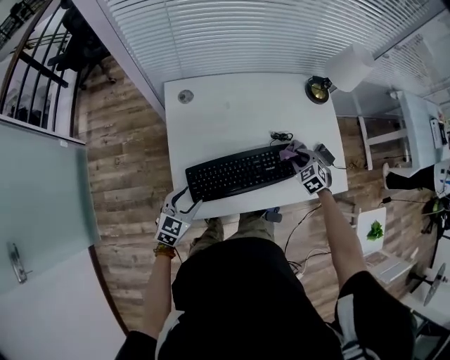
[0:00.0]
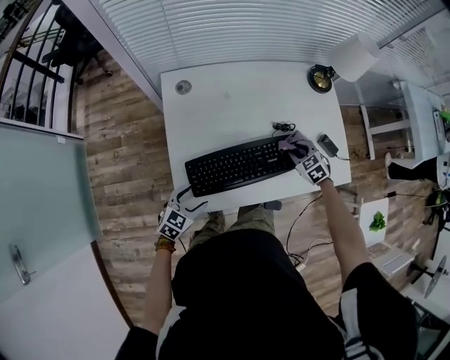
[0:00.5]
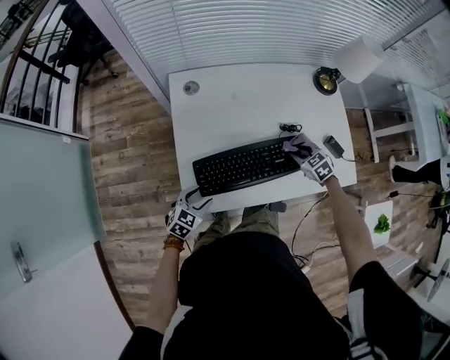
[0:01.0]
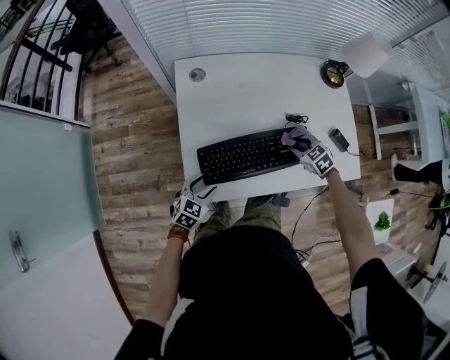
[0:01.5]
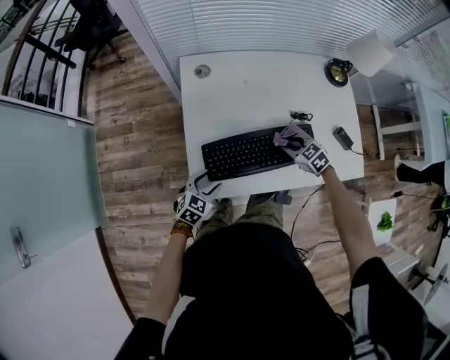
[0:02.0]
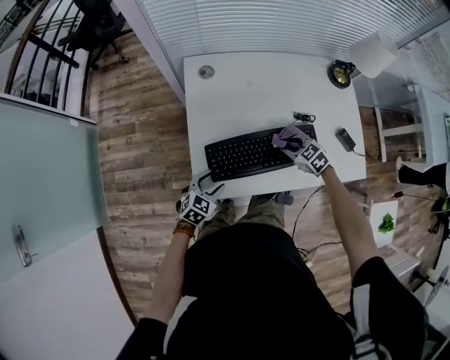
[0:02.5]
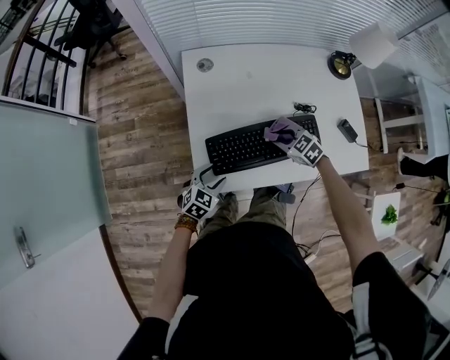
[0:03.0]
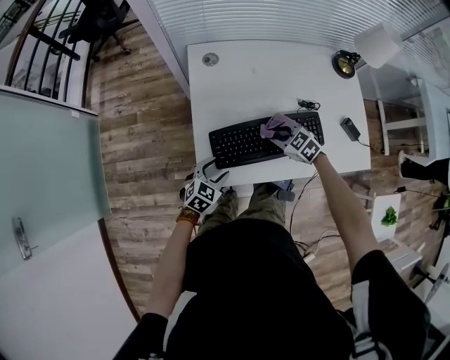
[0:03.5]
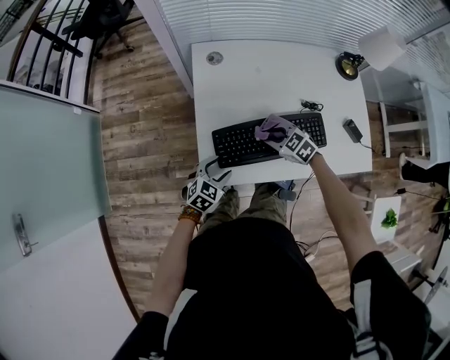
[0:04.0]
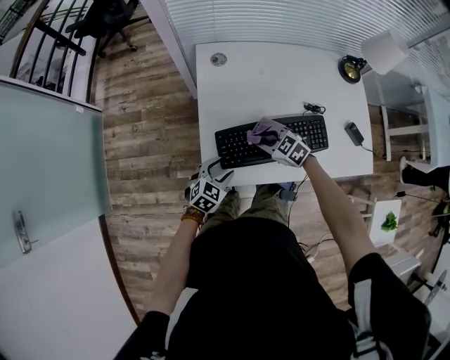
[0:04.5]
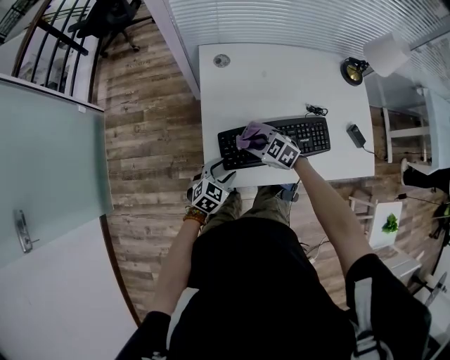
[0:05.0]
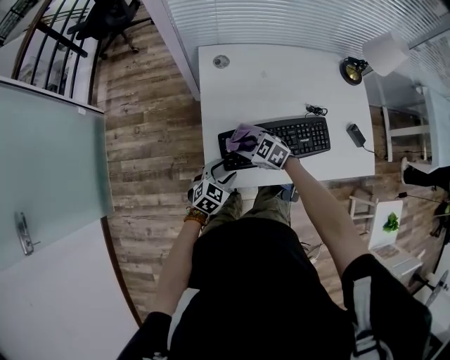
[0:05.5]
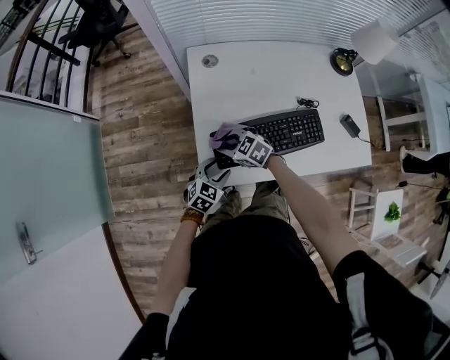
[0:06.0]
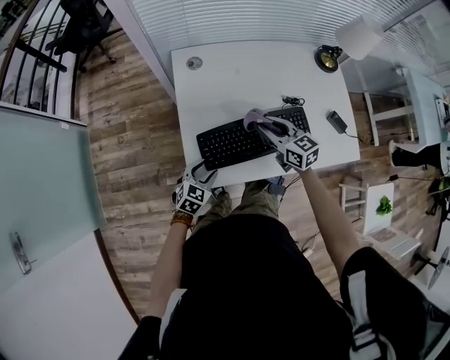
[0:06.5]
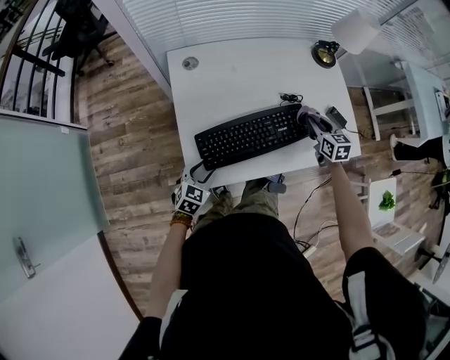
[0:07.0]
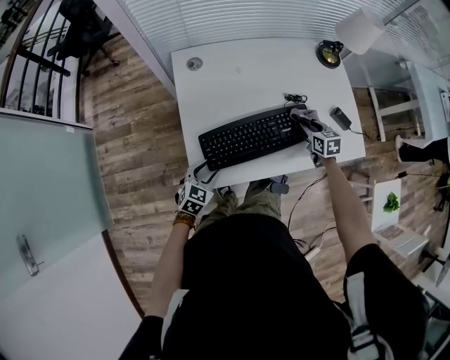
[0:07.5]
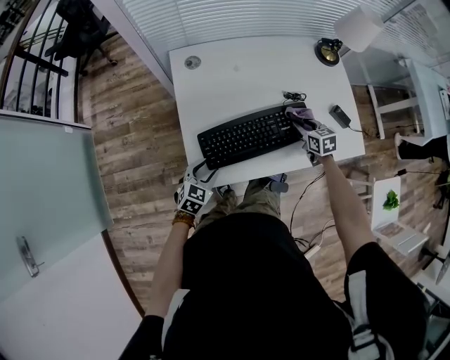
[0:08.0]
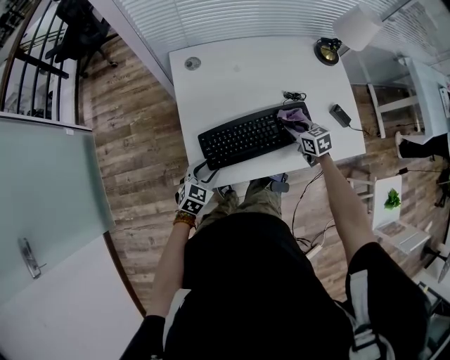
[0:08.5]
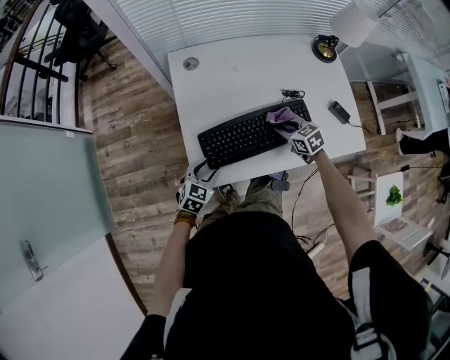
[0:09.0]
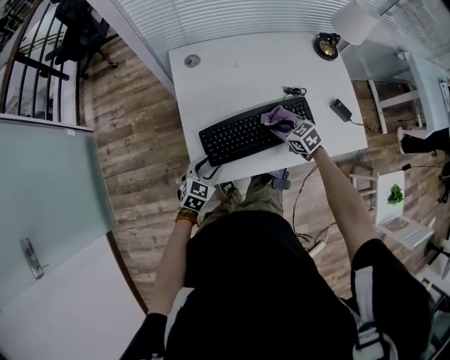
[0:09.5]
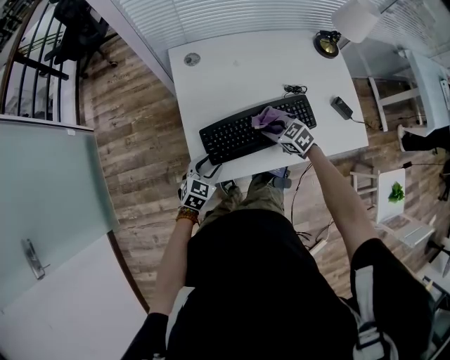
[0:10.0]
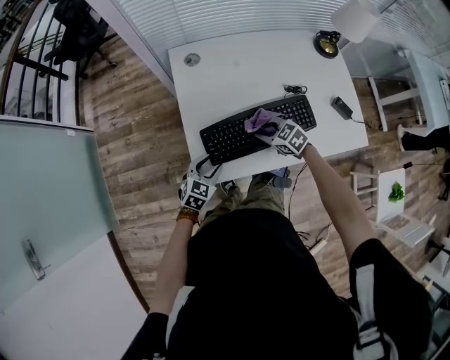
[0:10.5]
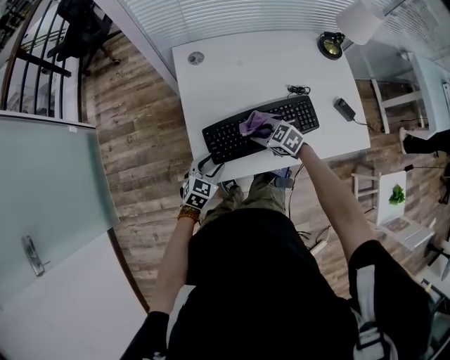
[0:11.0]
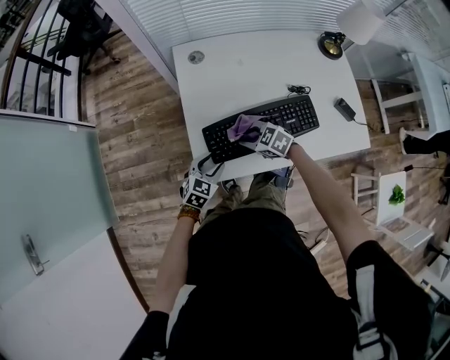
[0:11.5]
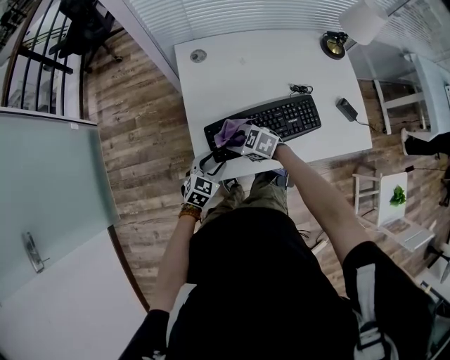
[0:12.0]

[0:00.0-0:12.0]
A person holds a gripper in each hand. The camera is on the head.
0:00.0 to 0:02.0: The right gripper is displaced to the left by approximately 10 cm, and rotates roughly 20 degrees, while the left gripper heads downward, covering about 5 cm.
0:02.0 to 0:04.0: The right gripper shifts roughly 10 cm to the left.
0:04.0 to 0:06.0: The right gripper goes about 15 cm to the left.
0:06.0 to 0:08.0: The right gripper goes upward and returns, some 10 cm each way, and swivels roughly 50 degrees.
0:08.0 to 0:10.0: The right gripper moves to the left, roughly 15 cm, and swivels roughly 30 degrees.
0:10.0 to 0:12.0: The right gripper heads to the left, covering roughly 15 cm.

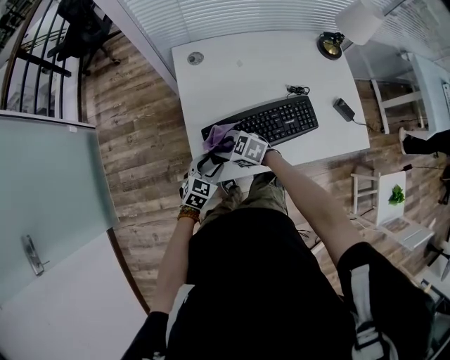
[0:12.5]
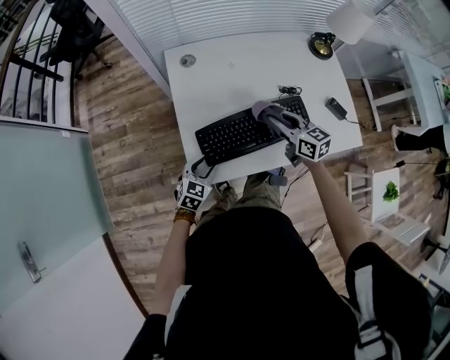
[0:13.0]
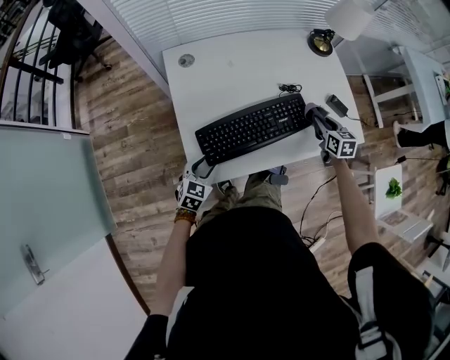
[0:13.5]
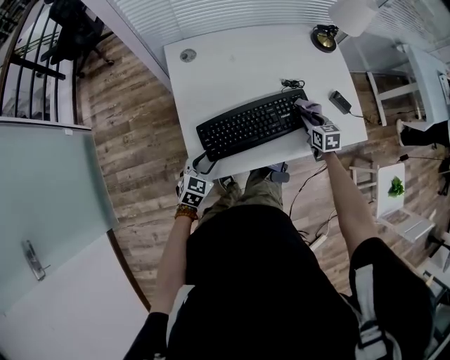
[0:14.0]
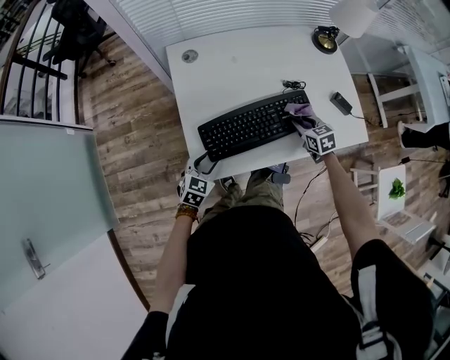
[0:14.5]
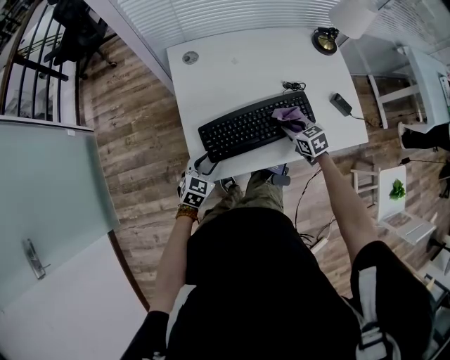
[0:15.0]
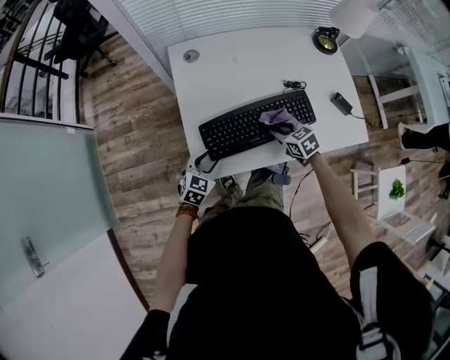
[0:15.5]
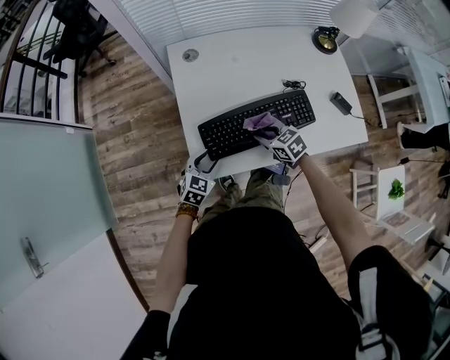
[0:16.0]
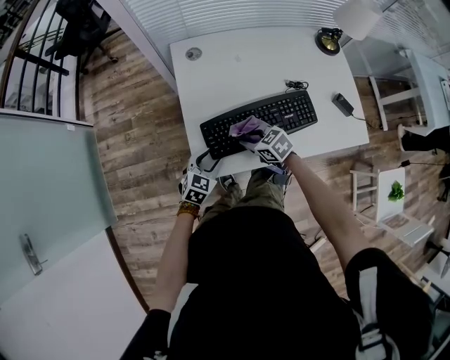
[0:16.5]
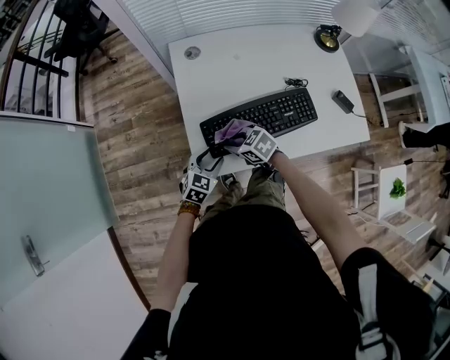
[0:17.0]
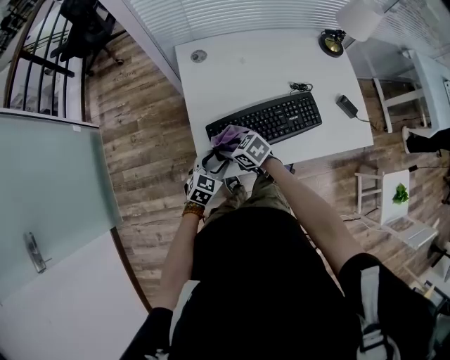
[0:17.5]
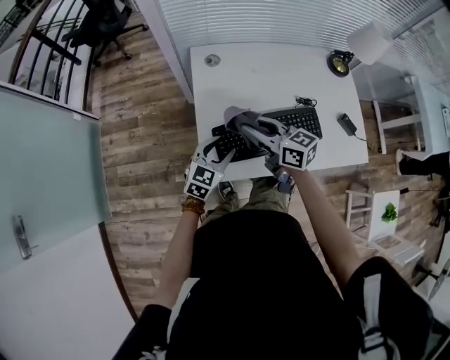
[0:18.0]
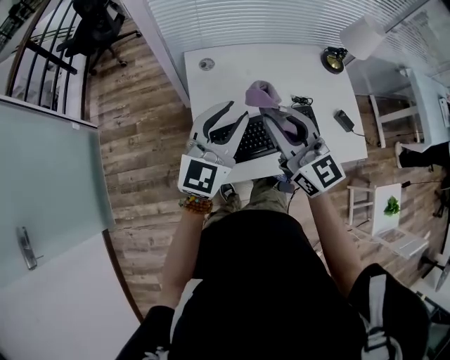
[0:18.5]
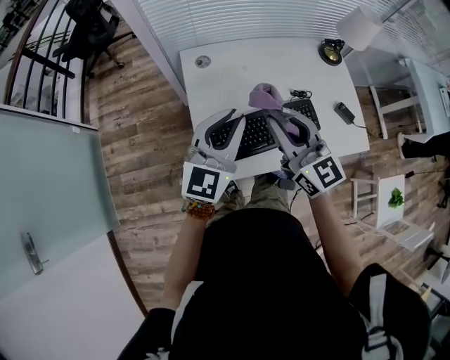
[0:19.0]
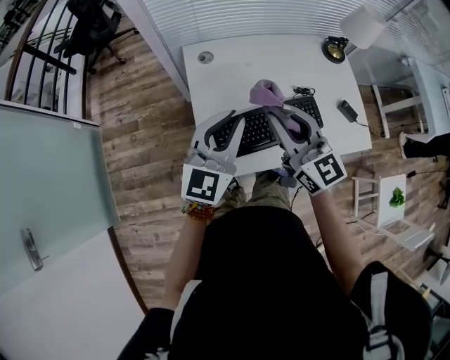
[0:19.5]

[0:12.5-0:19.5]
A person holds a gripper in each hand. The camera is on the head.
0:12.5 to 0:14.5: The right gripper reaches approximately 10 cm upward, then returns, and turns by some 50 degrees.
0:14.5 to 0:16.0: The right gripper is displaced to the left by some 15 cm, and turns by approximately 20 degrees.
0:16.0 to 0:17.5: The right gripper is displaced to the left by some 15 cm.
0:17.5 to 0:19.5: Both grippers travel together upward, some 30 cm. The left gripper tips its fingers upward by about 40 degrees, and closes. Meanwhile the right gripper tilts its fingers some 40 degrees upward.

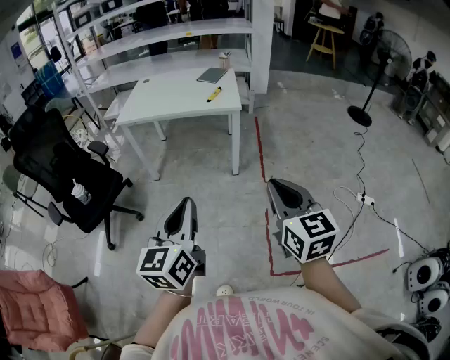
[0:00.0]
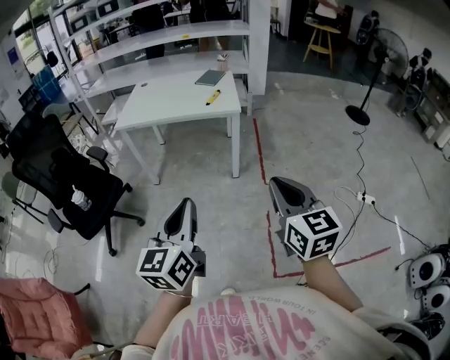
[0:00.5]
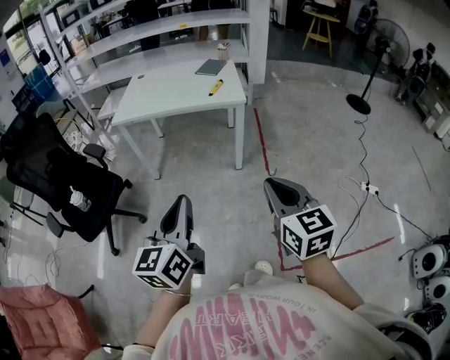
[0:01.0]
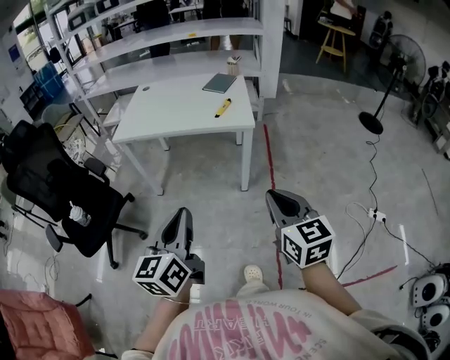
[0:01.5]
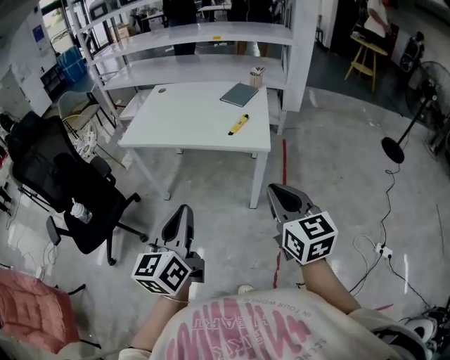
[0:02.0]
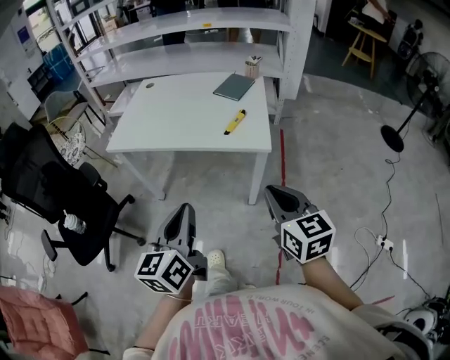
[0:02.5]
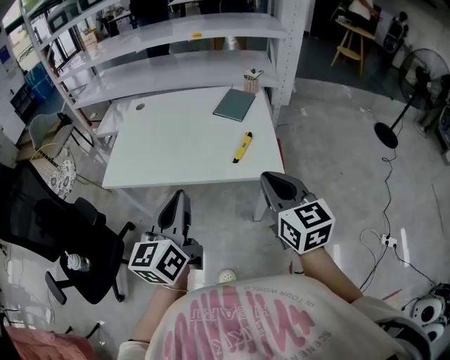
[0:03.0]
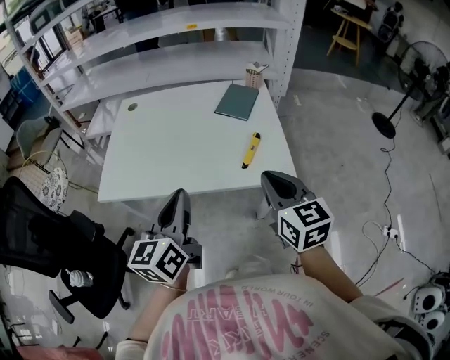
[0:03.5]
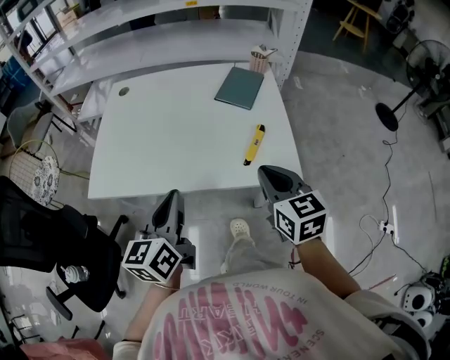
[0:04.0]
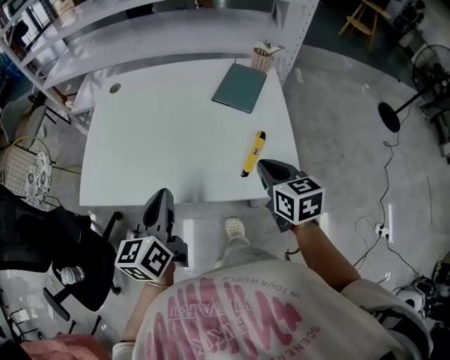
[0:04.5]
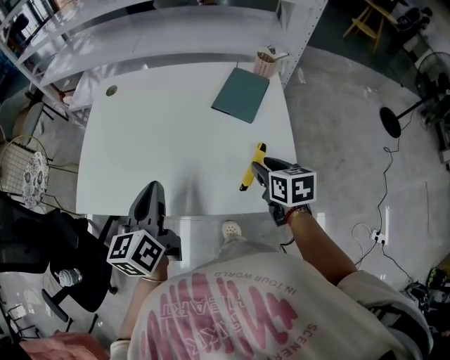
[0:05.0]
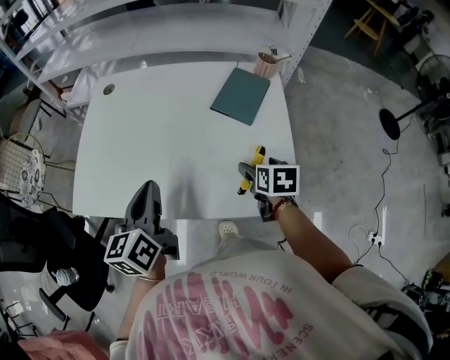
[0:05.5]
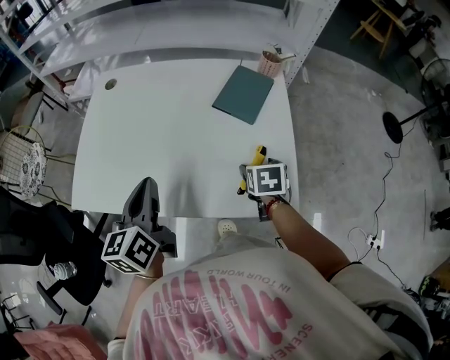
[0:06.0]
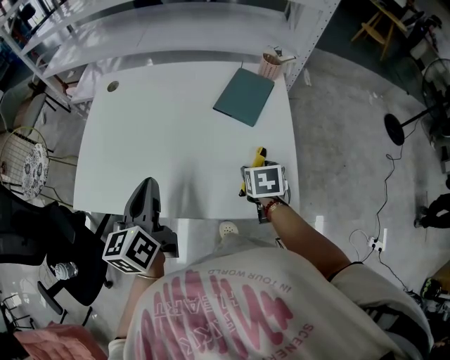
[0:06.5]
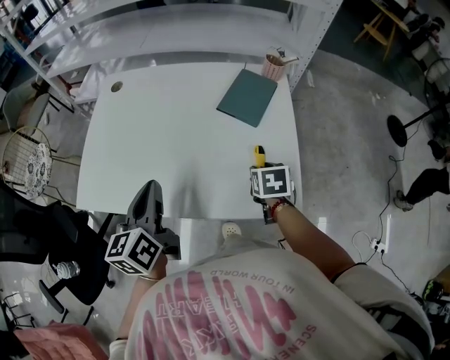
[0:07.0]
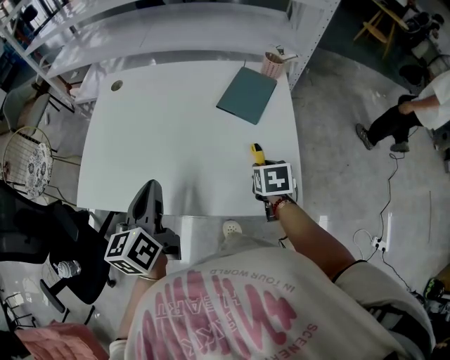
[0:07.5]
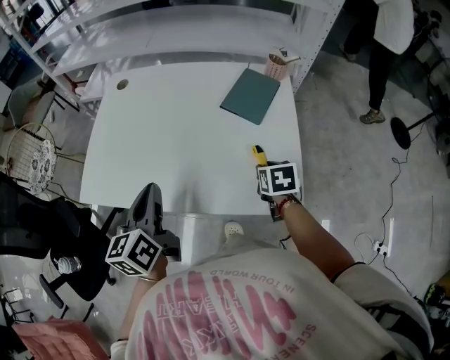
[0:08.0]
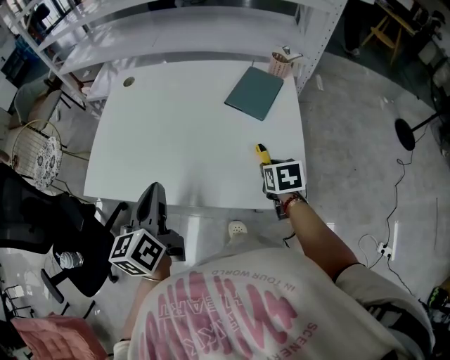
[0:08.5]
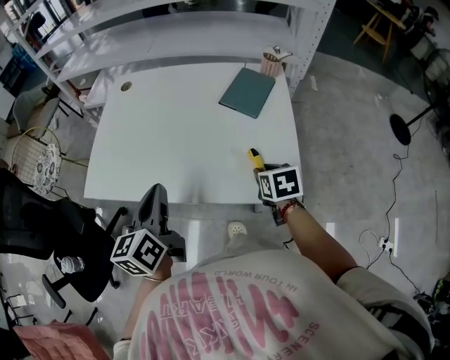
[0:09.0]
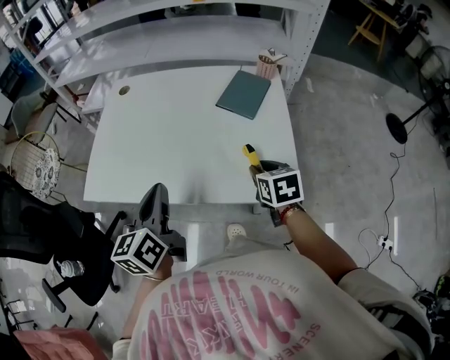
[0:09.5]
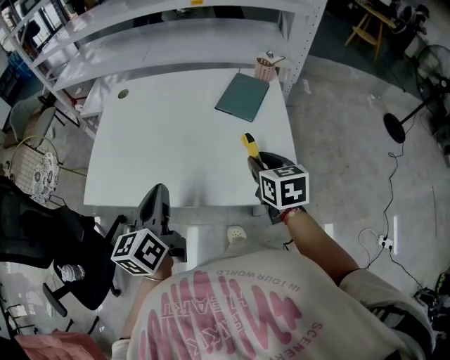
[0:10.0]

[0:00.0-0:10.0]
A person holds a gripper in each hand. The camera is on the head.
0:00.0 to 0:02.0: The two grippers go some 35 cm forward.
0:02.0 to 0:04.0: The two grippers travel together, forward, roughly 40 cm.
0:04.0 to 0:06.0: The right gripper is displaced forward and downward by about 25 cm, tilts its fingers some 30 degrees downward, and opens. The left gripper heads forward, covering roughly 15 cm.
0:06.0 to 0:08.0: The right gripper closes.
0:08.0 to 0:10.0: The right gripper moves upward, about 10 cm, and turns by roughly 20 degrees. The left gripper ends up roughly 5 cm from where it was.
